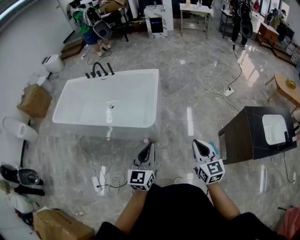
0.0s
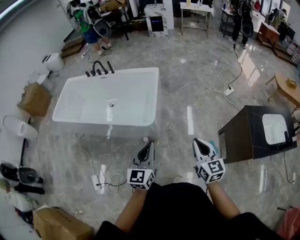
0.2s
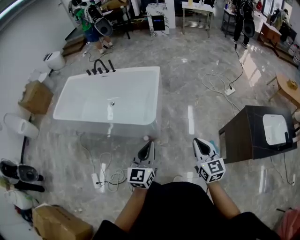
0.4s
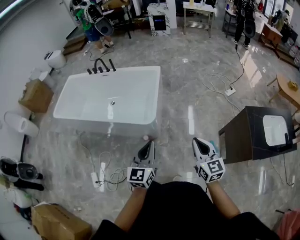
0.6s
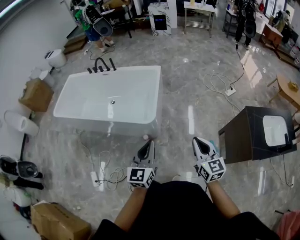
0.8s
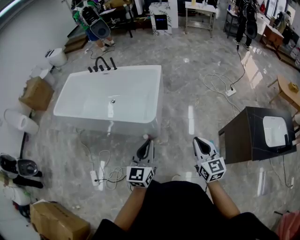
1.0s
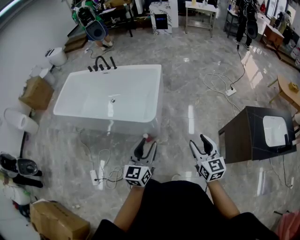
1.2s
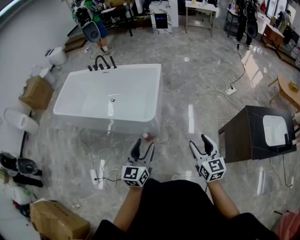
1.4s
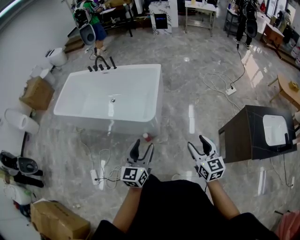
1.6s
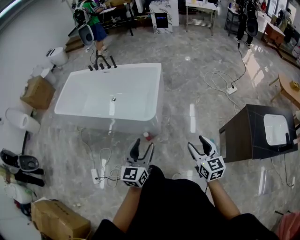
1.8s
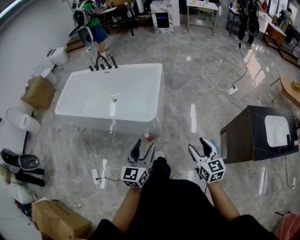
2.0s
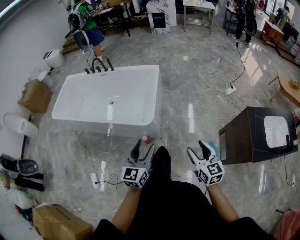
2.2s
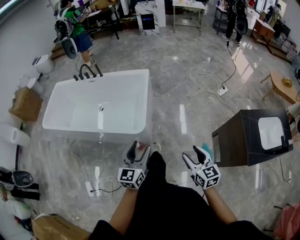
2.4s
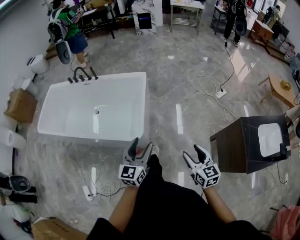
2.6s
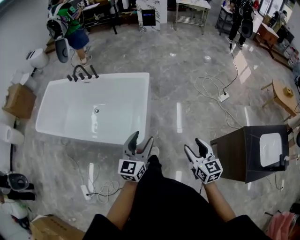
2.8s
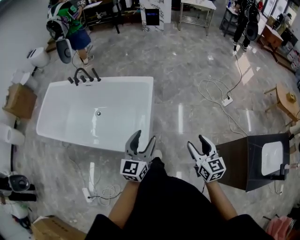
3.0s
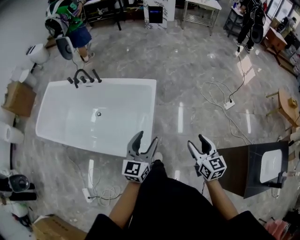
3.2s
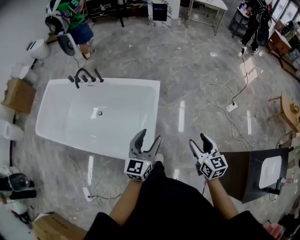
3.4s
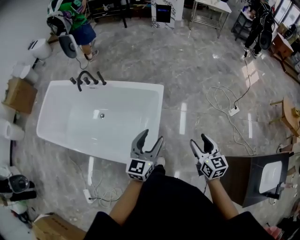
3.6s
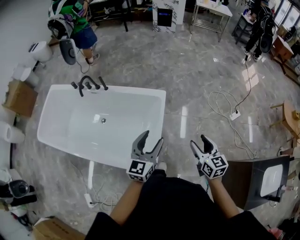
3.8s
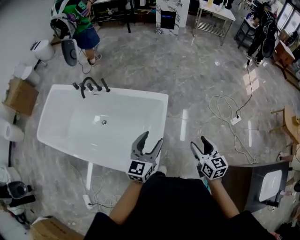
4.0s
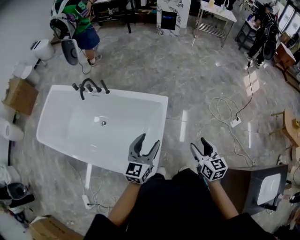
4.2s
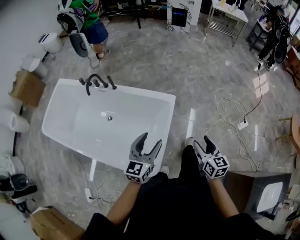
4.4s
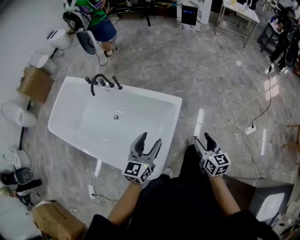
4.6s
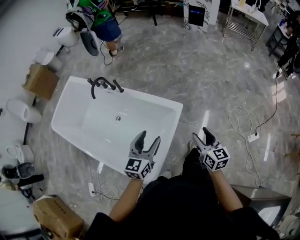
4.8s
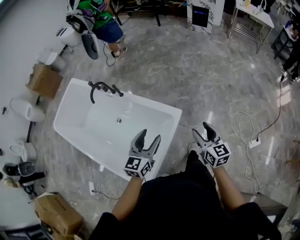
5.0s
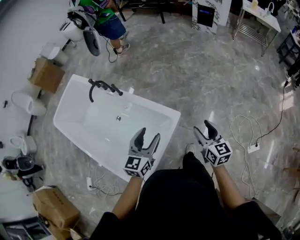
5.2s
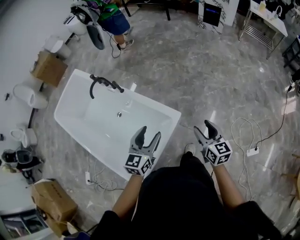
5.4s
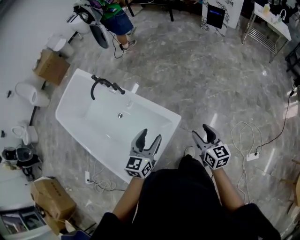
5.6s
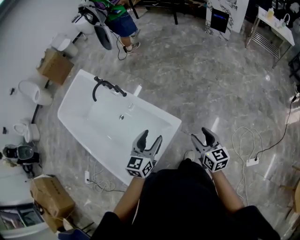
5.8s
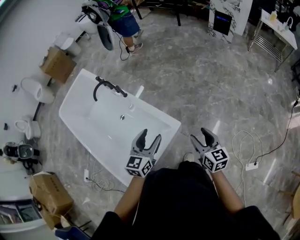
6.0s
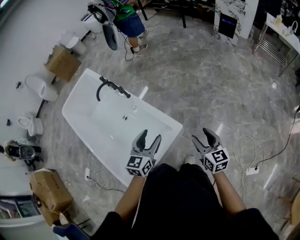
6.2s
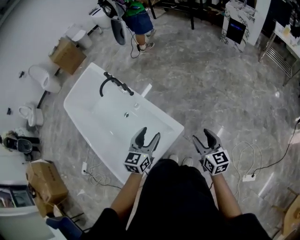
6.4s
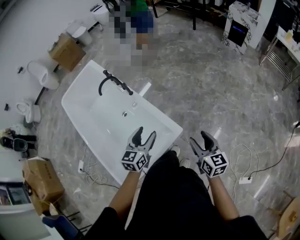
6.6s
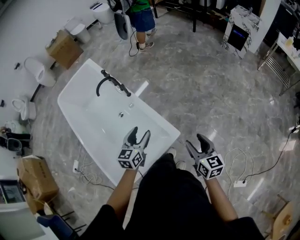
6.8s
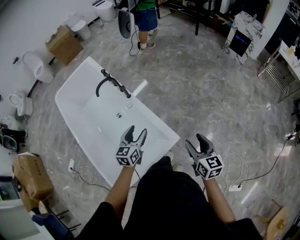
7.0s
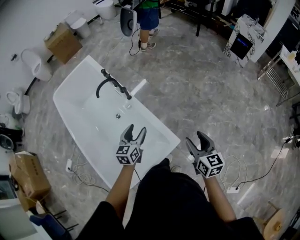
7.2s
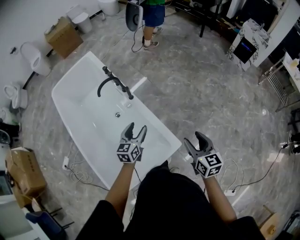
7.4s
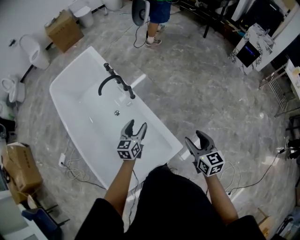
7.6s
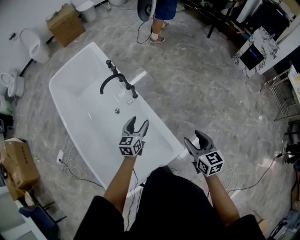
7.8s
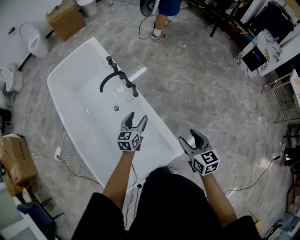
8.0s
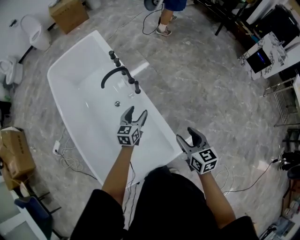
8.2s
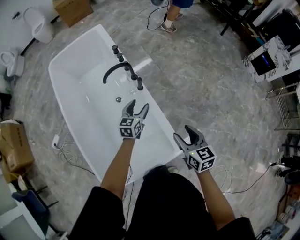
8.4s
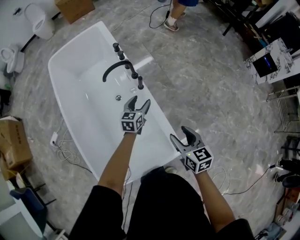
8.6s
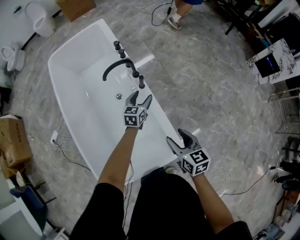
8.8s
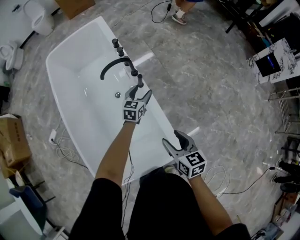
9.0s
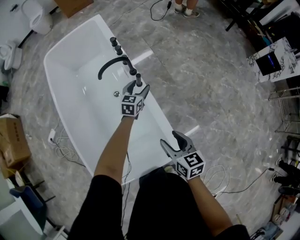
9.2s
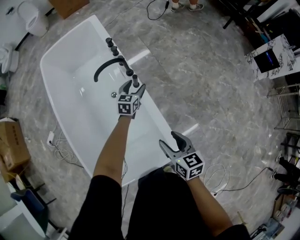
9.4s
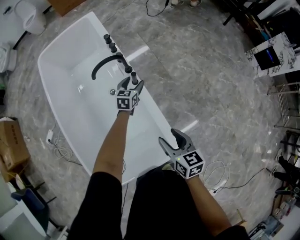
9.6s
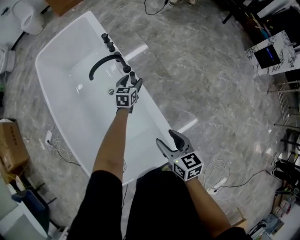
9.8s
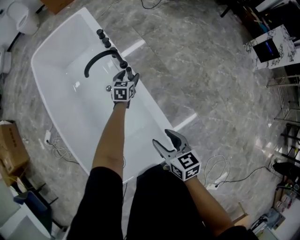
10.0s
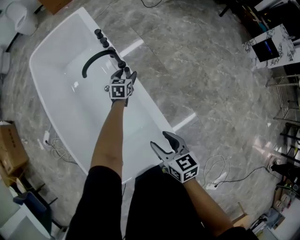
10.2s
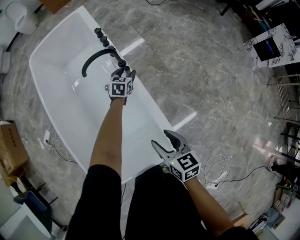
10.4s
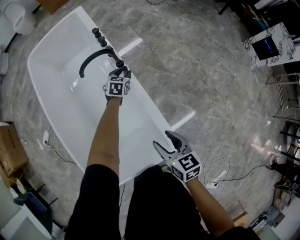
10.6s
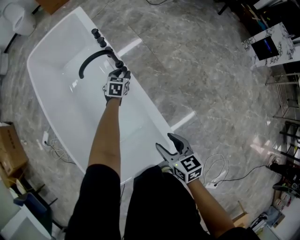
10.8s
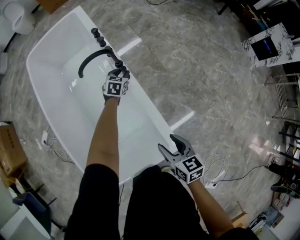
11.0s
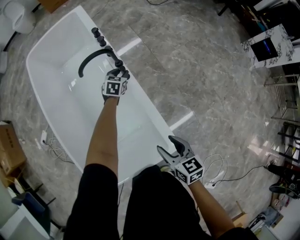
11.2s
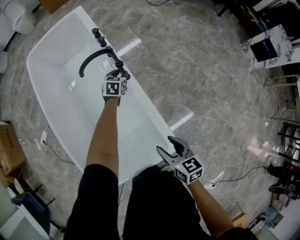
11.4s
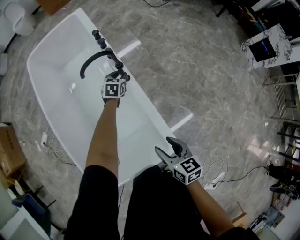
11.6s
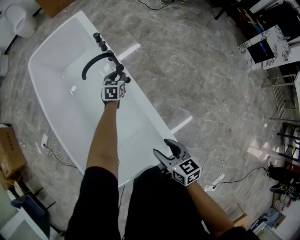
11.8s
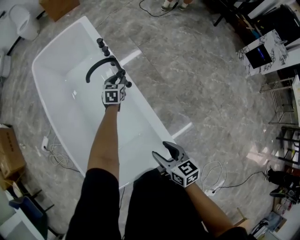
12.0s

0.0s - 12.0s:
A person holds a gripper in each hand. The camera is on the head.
0.0s - 1.6s: The left gripper opens, while the right gripper opens its fingers.
1.6s - 3.0s: Both grippers travel together forward, about 35 cm.
3.0s - 4.4s: Both grippers travel together forward, about 25 cm.
4.4s - 6.0s: The left gripper ends up roughly 30 cm from where it was, and swivels some 30 degrees. The right gripper moves about 35 cm, and turns by about 30 degrees.
6.0s - 7.6s: The left gripper shifts roughly 30 cm forward, to the left and downward, and turns by about 20 degrees. Meanwhile the right gripper moves forward and to the left, approximately 25 cm.
7.6s - 9.0s: The left gripper is displaced forward and downward by about 25 cm. The right gripper shifts approximately 20 cm to the left, downward and forward.
9.0s - 10.4s: The left gripper is displaced downward and forward by about 15 cm.
10.4s - 12.0s: The right gripper heads backward, covering some 5 cm, while the left gripper goes roughly 5 cm upward, and closes up.

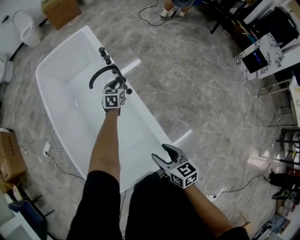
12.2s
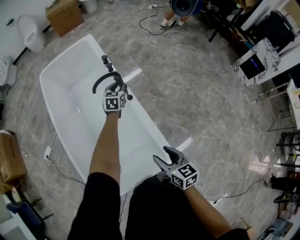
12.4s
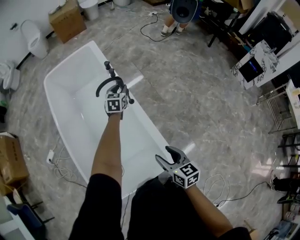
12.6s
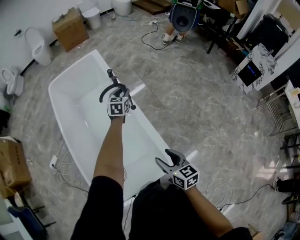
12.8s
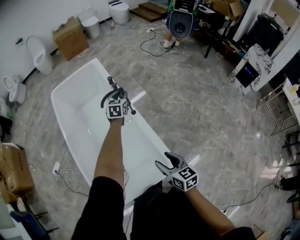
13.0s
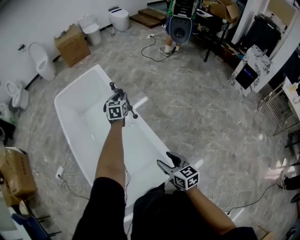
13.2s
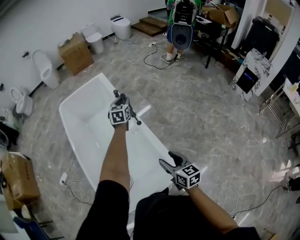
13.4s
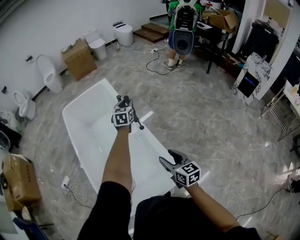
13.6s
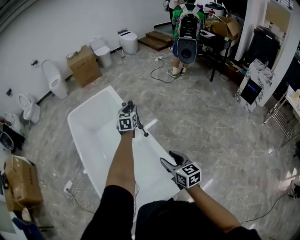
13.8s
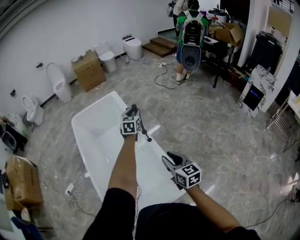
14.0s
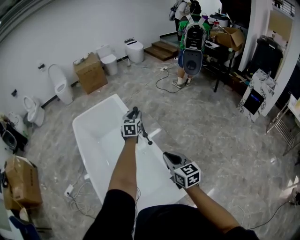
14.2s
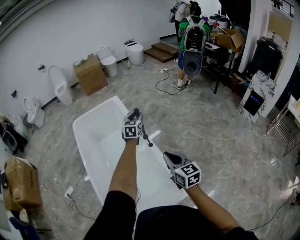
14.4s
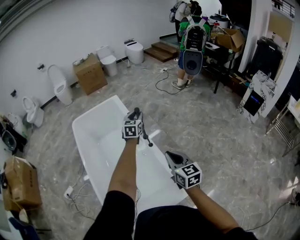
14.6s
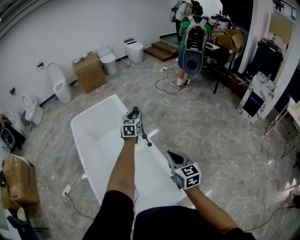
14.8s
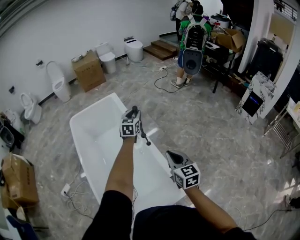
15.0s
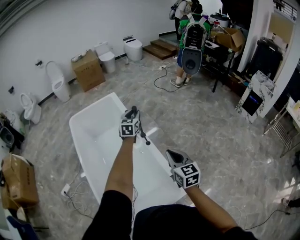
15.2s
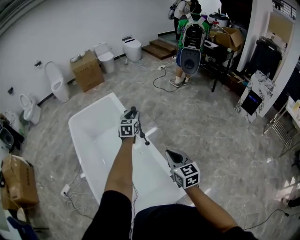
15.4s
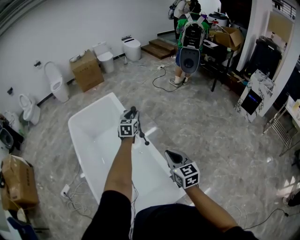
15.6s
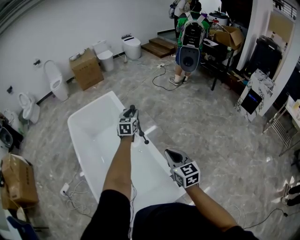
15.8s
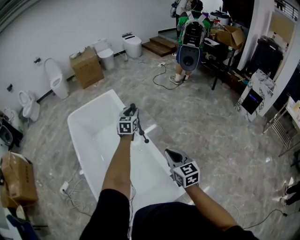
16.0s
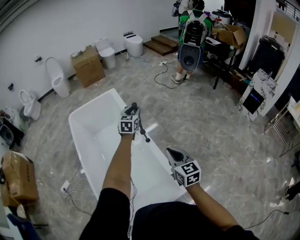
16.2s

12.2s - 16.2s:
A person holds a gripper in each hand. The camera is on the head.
12.2s - 13.6s: The right gripper moves upward, approximately 10 cm. The left gripper goes about 25 cm upward.
13.6s - 14.8s: The right gripper moves upward and forward, approximately 10 cm, and closes its fingers.
14.8s - 16.2s: The grippers move only a little.

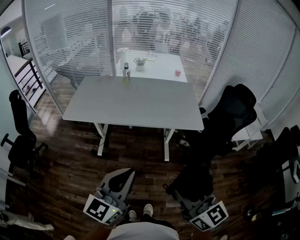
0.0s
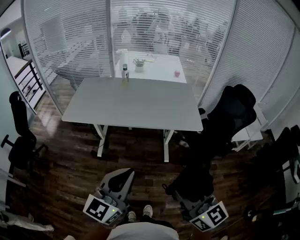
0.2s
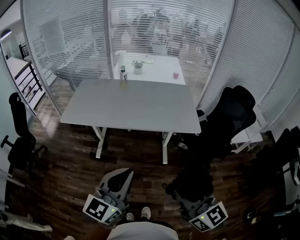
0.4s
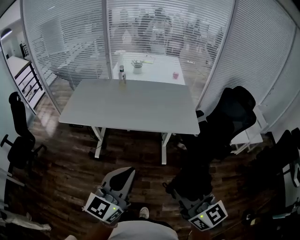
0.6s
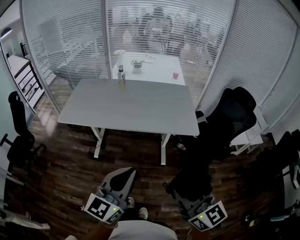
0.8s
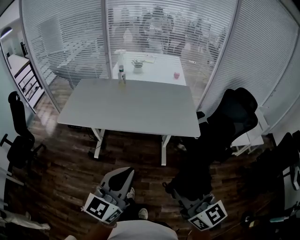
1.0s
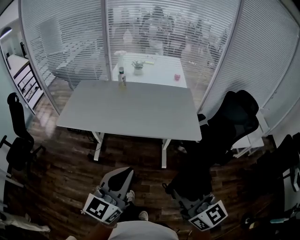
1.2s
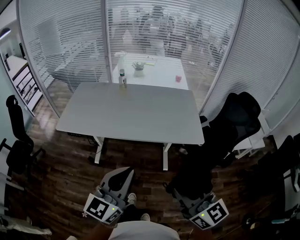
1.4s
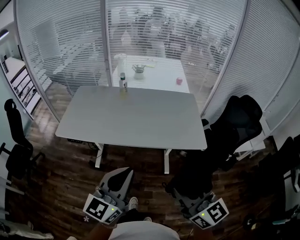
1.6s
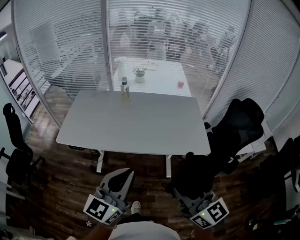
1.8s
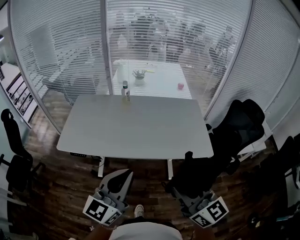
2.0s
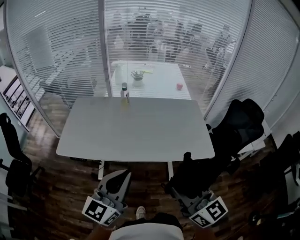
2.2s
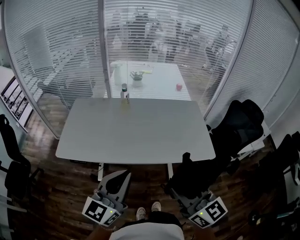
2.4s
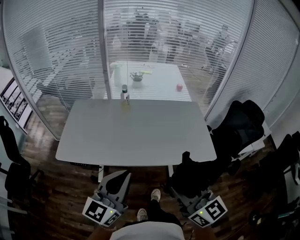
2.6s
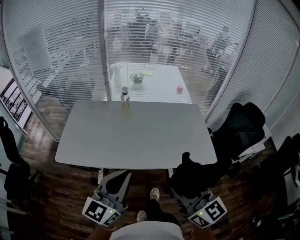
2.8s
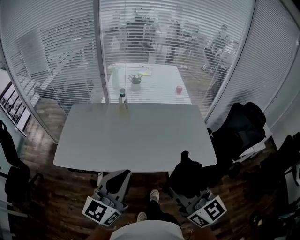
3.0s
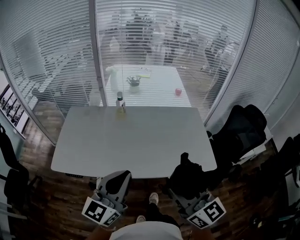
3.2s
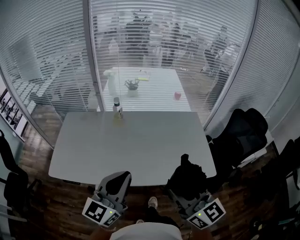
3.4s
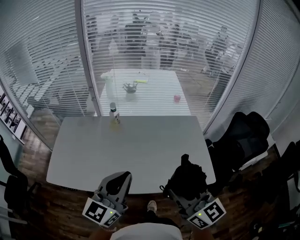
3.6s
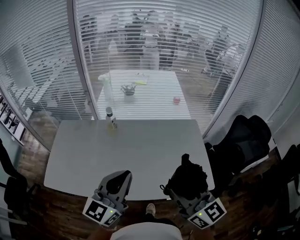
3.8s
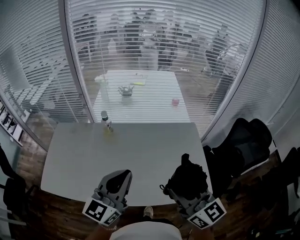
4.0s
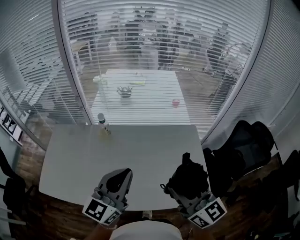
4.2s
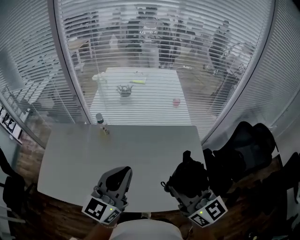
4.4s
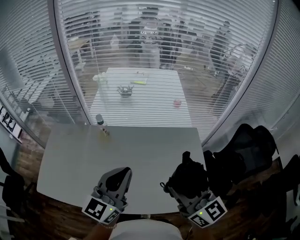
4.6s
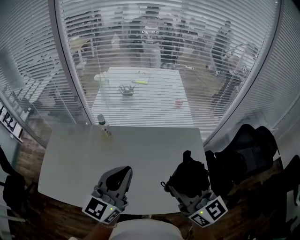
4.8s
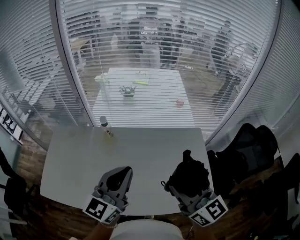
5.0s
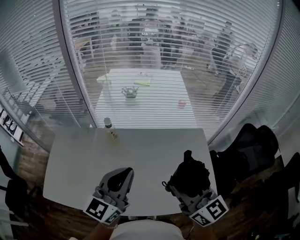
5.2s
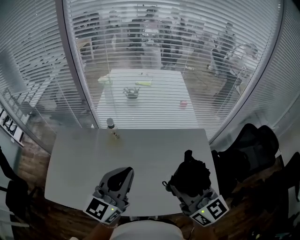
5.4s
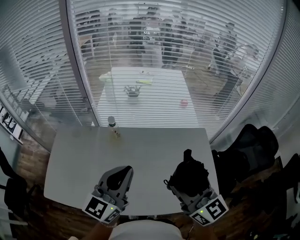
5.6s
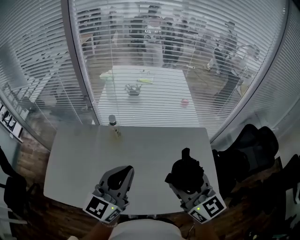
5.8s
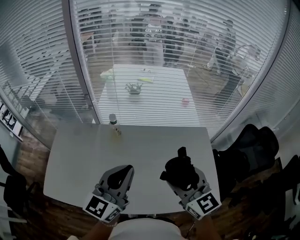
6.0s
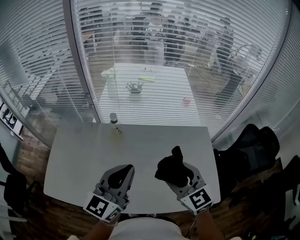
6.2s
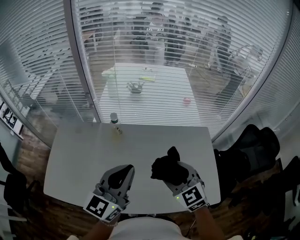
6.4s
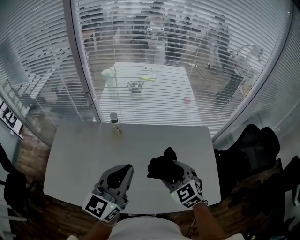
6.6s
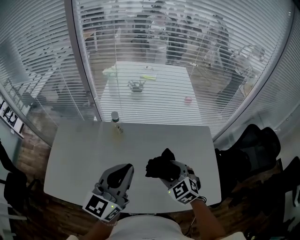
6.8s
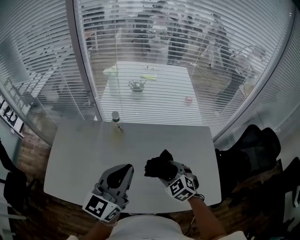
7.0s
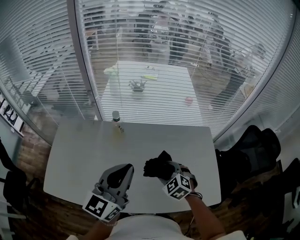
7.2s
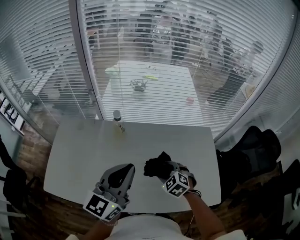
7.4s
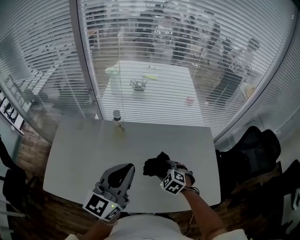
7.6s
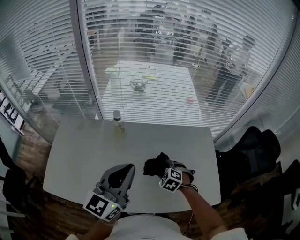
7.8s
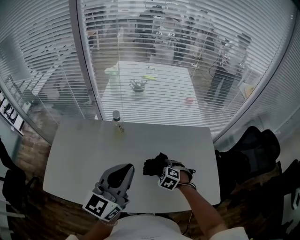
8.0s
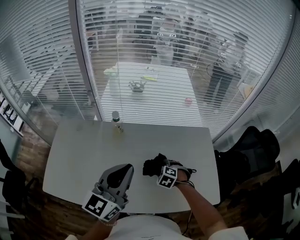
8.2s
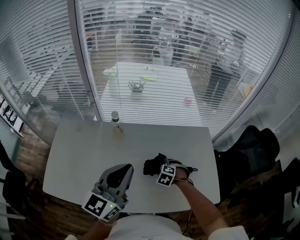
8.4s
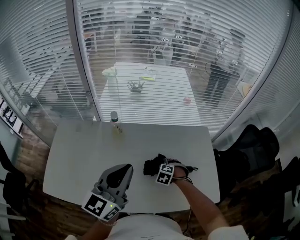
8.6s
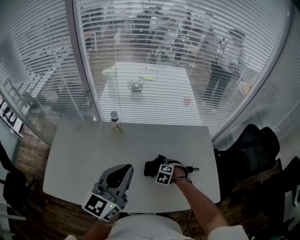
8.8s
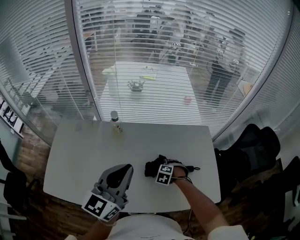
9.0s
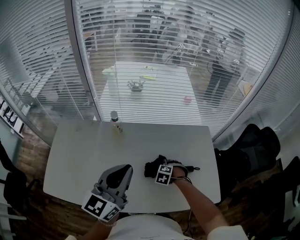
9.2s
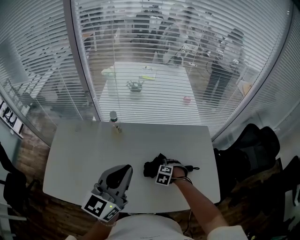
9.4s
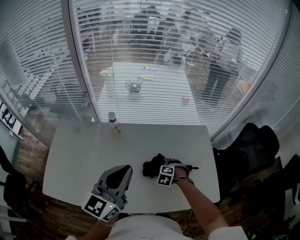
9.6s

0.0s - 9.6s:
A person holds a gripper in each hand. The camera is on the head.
0.0s - 1.6s: The two grippers go roughly 15 cm forward.
1.6s - 3.2s: The two grippers go approximately 20 cm forward and to the left.
3.2s - 4.8s: The grippers both shift forward and to the right by approximately 30 cm.
4.8s - 6.4s: The right gripper heads downward, to the left and forward, covering some 15 cm, and turns by roughly 40 degrees. Meanwhile the left gripper travels to the left by about 10 cm.
6.4s - 8.0s: The right gripper is displaced downward by some 20 cm, and angles its fingers downward, by about 40 degrees.
8.0s - 9.6s: The right gripper changes place by roughly 5 cm.
